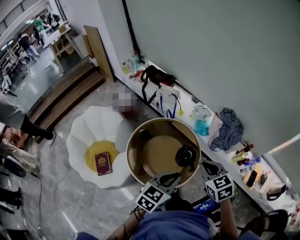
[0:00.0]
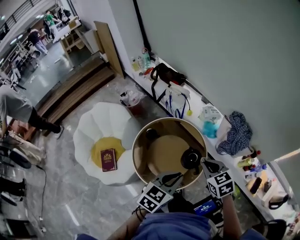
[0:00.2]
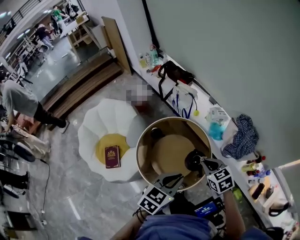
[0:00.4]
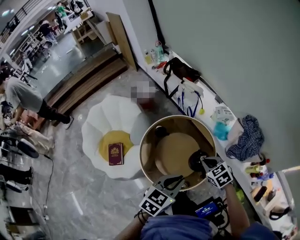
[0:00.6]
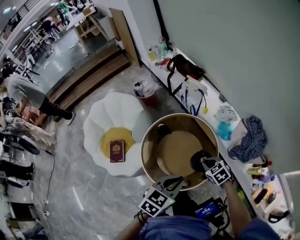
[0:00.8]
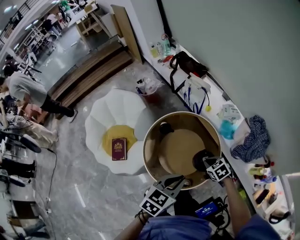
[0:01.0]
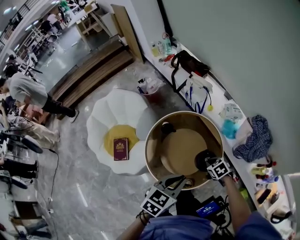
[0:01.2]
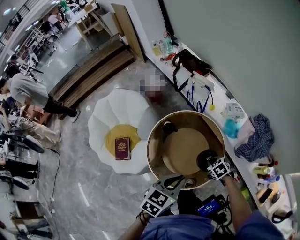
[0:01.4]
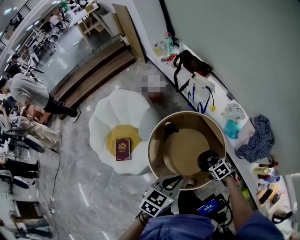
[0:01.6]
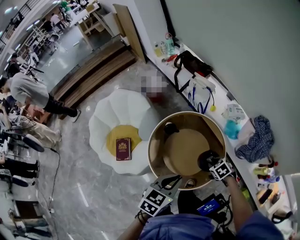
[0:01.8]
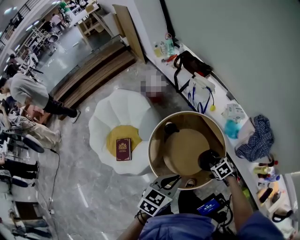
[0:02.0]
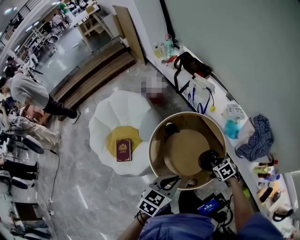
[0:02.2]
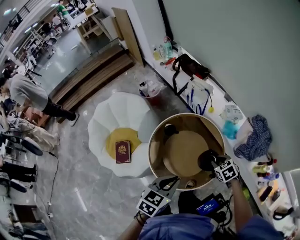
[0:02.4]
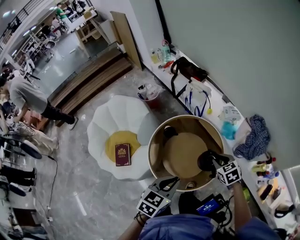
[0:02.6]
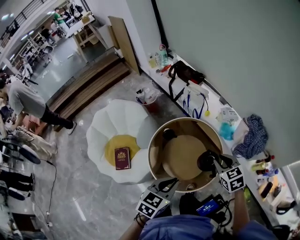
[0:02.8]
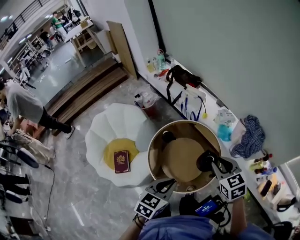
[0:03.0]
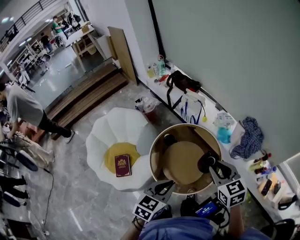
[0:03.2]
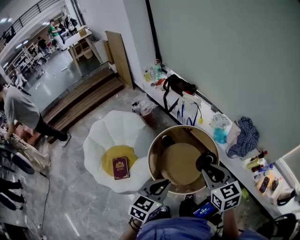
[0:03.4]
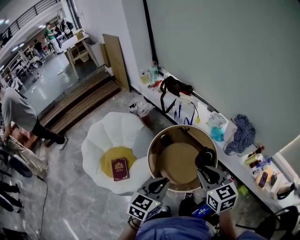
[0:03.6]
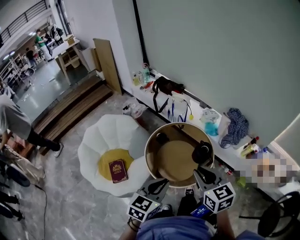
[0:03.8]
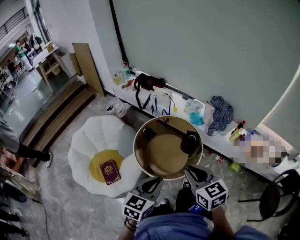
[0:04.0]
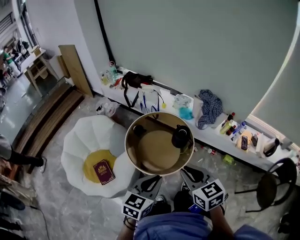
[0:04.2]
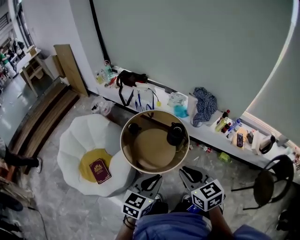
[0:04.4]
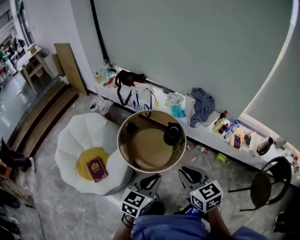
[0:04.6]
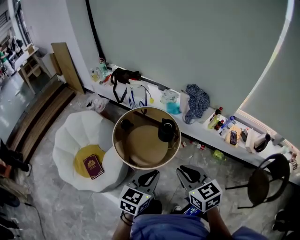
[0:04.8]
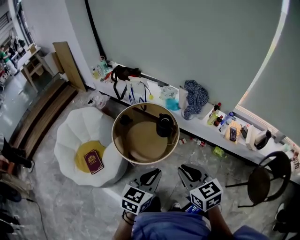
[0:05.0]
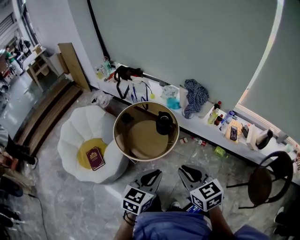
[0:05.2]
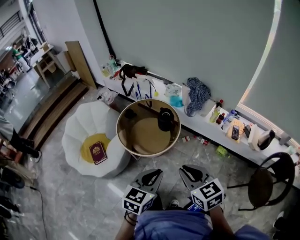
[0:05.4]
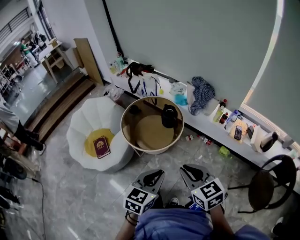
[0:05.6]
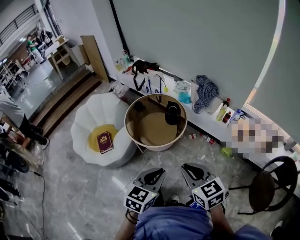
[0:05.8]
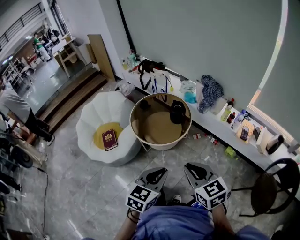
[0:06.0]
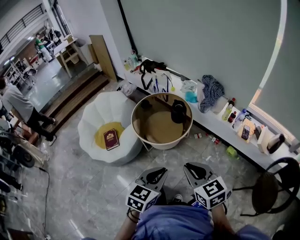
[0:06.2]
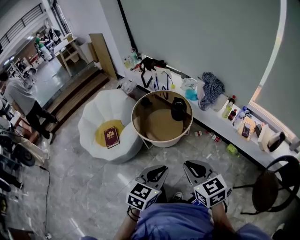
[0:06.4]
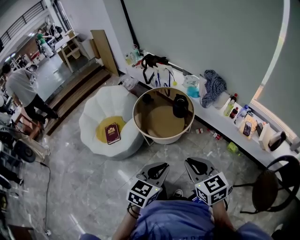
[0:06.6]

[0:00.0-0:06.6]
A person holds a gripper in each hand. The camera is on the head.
0:00.0 to 0:01.6: The right gripper heads downward, covering some 25 cm, and swivels about 40 degrees. The left gripper changes place by about 10 cm.
0:01.6 to 0:03.2: The left gripper heads to the left, backward and upward, covering approximately 10 cm. The right gripper heads upward, covering about 30 cm, and tilts its fingers approximately 30 degrees upward.
0:03.2 to 0:05.0: The right gripper heads backward, covering about 30 cm. Meanwhile the left gripper shifts approximately 20 cm backward and to the right.
0:05.0 to 0:06.6: The two grippers go approximately 15 cm backward.

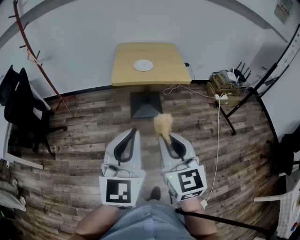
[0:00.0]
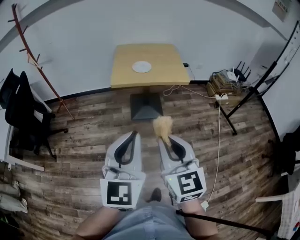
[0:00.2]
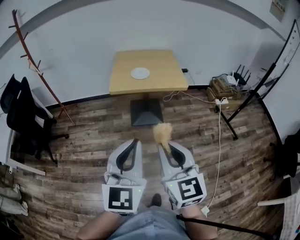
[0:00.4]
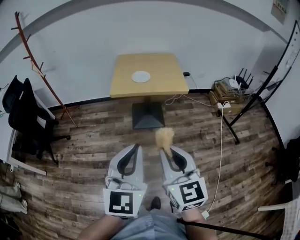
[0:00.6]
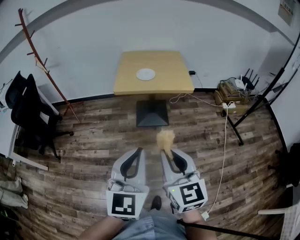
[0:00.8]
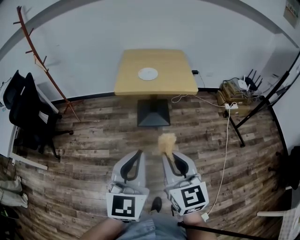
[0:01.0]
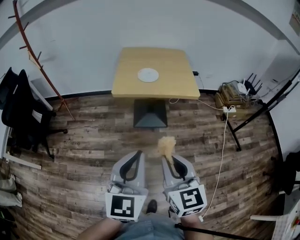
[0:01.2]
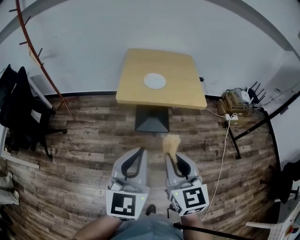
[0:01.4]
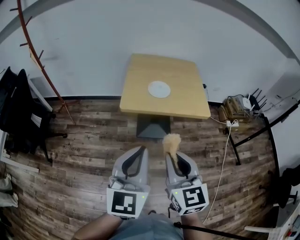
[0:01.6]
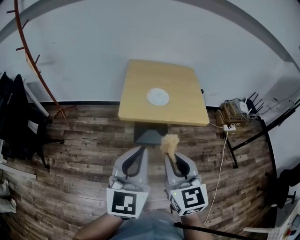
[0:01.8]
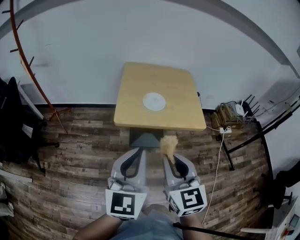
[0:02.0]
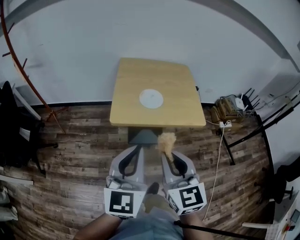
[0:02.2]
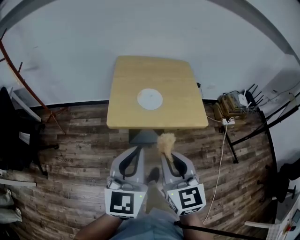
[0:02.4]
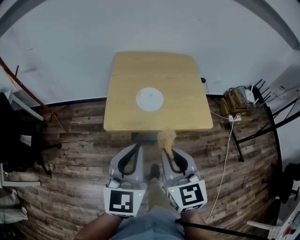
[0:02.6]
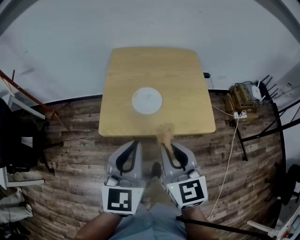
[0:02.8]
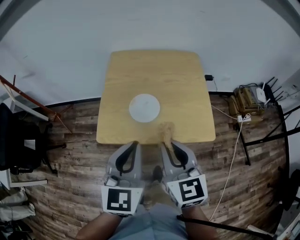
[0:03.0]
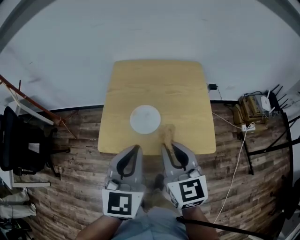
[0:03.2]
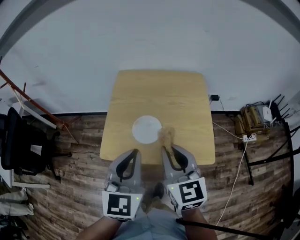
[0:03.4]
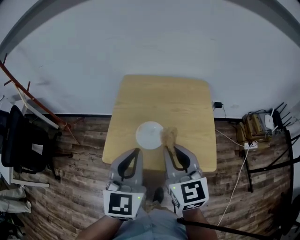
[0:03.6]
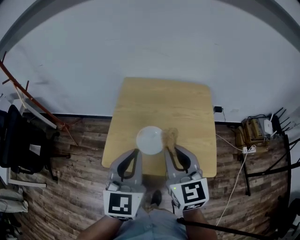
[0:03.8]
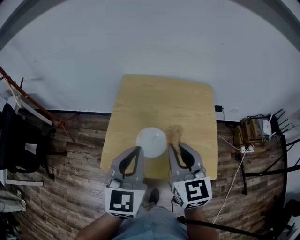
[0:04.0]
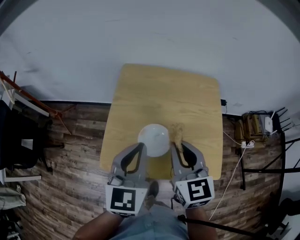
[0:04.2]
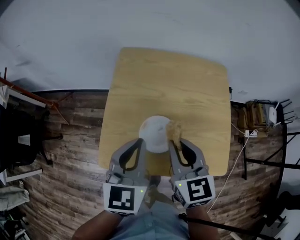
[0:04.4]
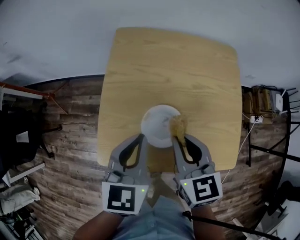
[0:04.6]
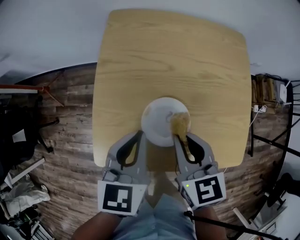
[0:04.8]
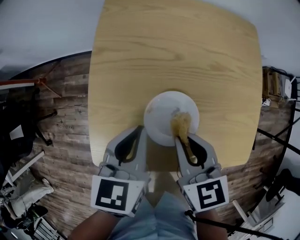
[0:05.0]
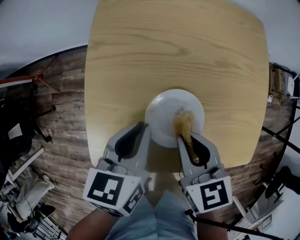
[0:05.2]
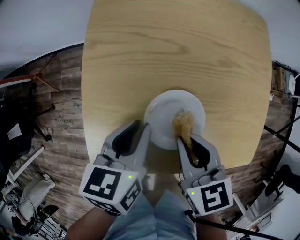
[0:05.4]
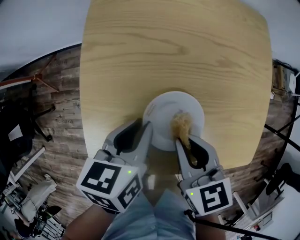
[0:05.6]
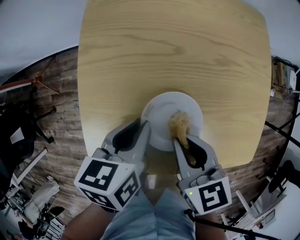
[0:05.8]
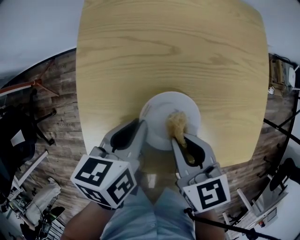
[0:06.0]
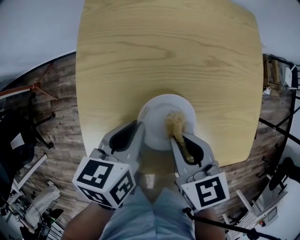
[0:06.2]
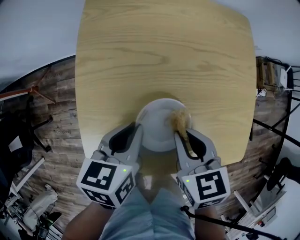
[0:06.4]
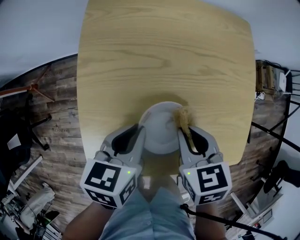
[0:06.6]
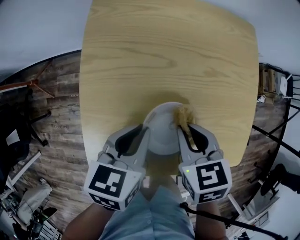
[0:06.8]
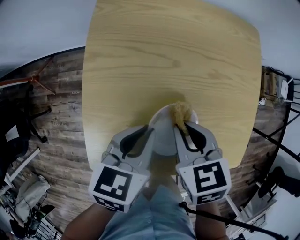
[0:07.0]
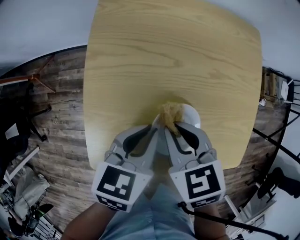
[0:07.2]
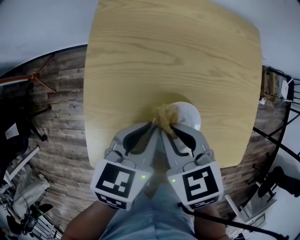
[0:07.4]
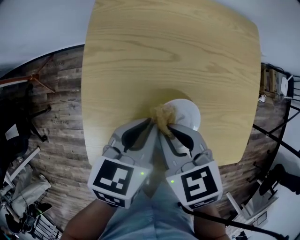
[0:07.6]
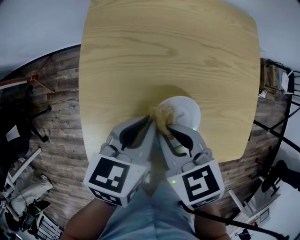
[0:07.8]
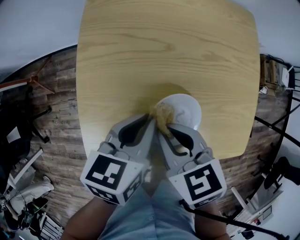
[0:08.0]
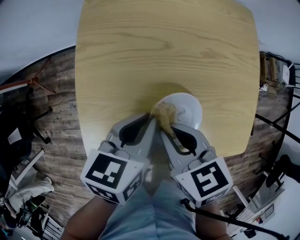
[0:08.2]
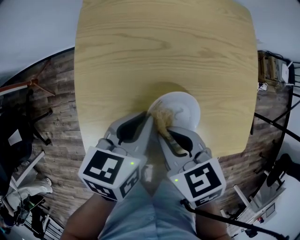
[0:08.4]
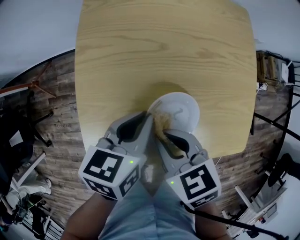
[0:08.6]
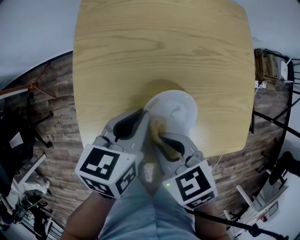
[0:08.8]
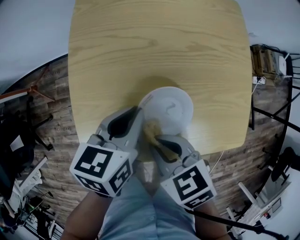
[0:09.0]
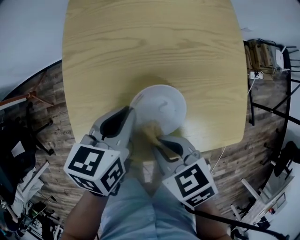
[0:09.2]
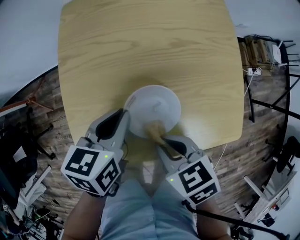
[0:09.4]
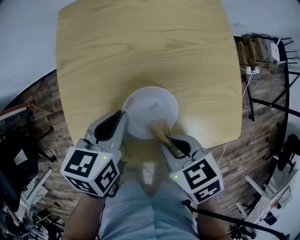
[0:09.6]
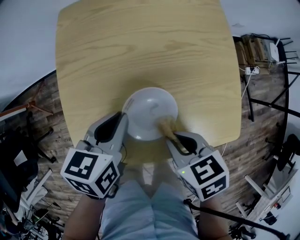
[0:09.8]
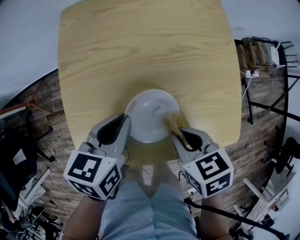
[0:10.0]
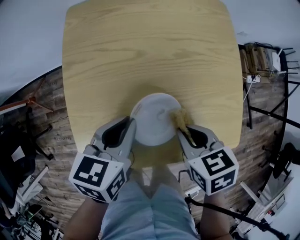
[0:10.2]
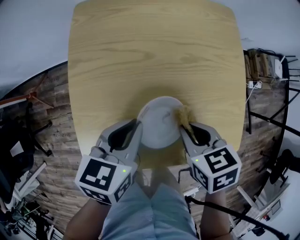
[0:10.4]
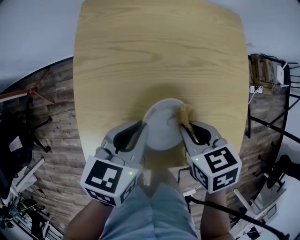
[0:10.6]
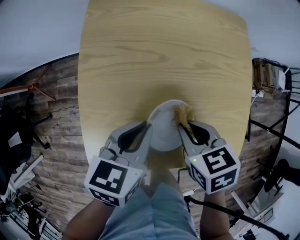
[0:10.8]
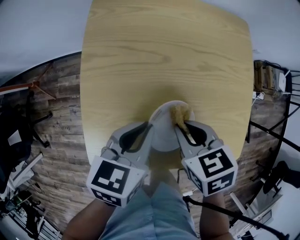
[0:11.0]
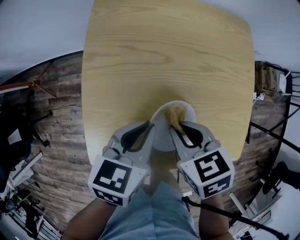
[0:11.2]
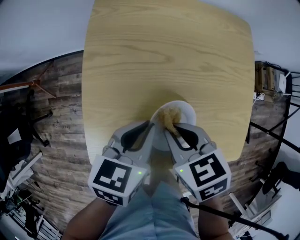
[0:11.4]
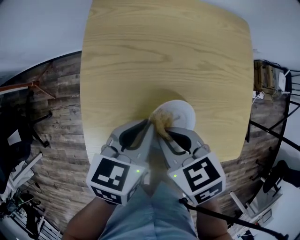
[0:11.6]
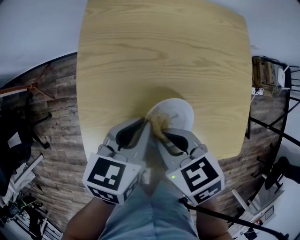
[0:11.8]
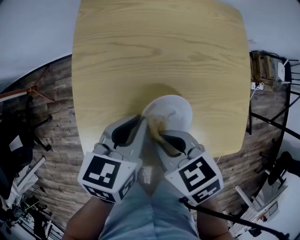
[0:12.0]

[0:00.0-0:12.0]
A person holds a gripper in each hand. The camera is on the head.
0:00.0 to 0:01.6: Both grippers move forward, approximately 20 cm.
0:01.6 to 0:03.0: Both grippers move forward, approximately 30 cm.
0:03.0 to 0:04.4: The two grippers go some 20 cm forward.
0:04.4 to 0:06.0: Both grippers move downward, about 15 cm. The left gripper rotates some 40 degrees. The right gripper swivels some 20 degrees.
0:06.0 to 0:07.6: The right gripper changes place by approximately 5 cm.
0:07.6 to 0:09.0: The right gripper heads backward, covering roughly 10 cm.
0:09.0 to 0:10.4: The right gripper is displaced to the right and forward by about 15 cm.
0:10.4 to 0:12.0: The right gripper travels to the left by about 10 cm.

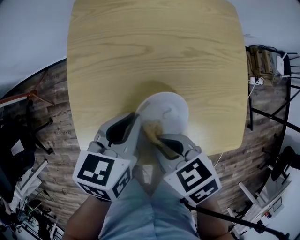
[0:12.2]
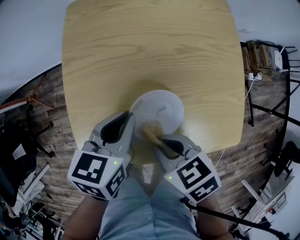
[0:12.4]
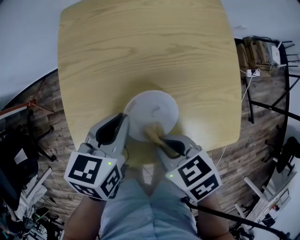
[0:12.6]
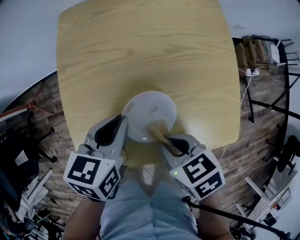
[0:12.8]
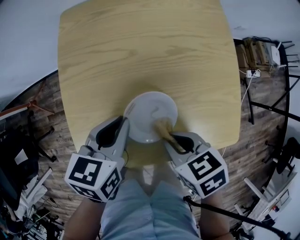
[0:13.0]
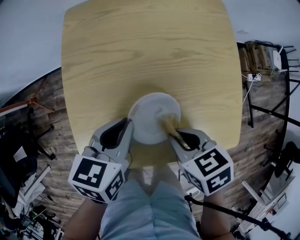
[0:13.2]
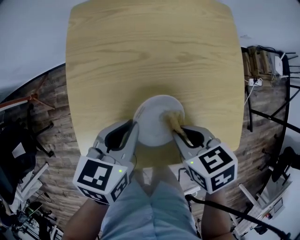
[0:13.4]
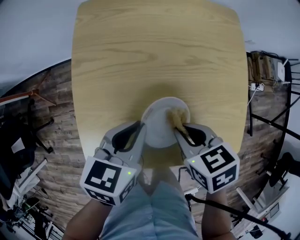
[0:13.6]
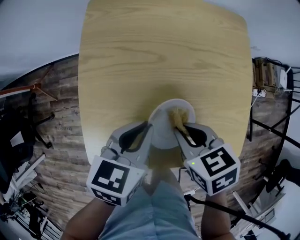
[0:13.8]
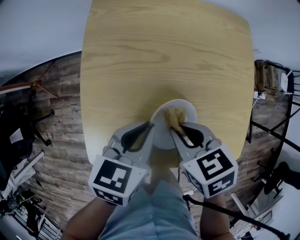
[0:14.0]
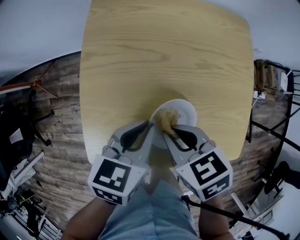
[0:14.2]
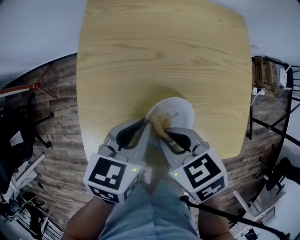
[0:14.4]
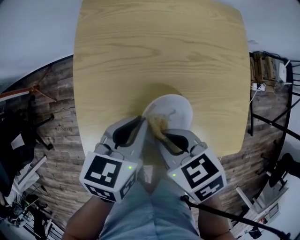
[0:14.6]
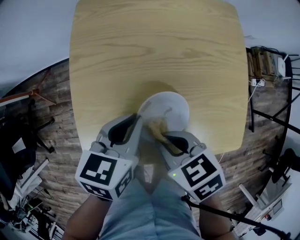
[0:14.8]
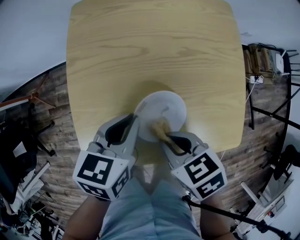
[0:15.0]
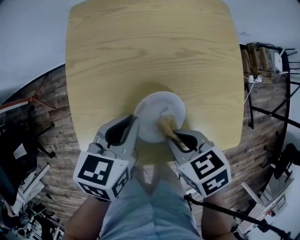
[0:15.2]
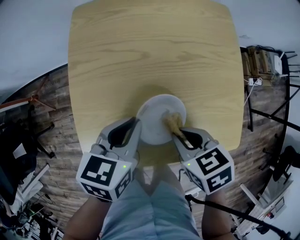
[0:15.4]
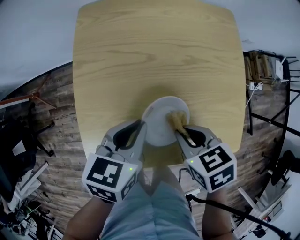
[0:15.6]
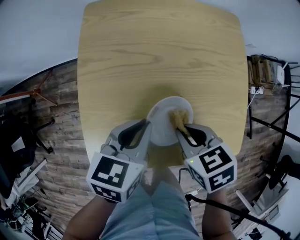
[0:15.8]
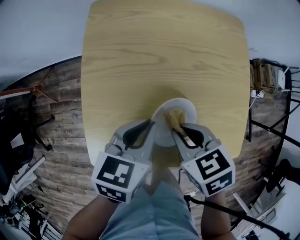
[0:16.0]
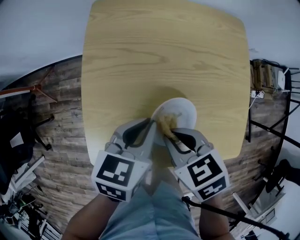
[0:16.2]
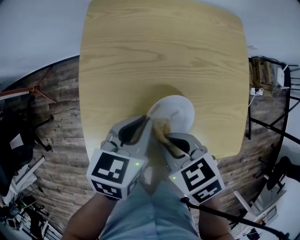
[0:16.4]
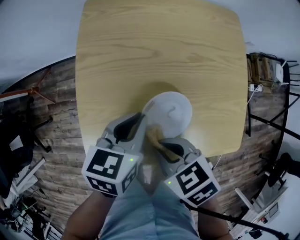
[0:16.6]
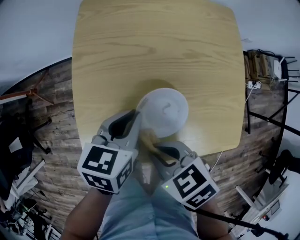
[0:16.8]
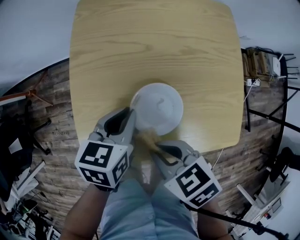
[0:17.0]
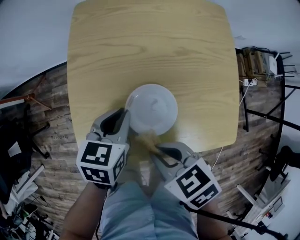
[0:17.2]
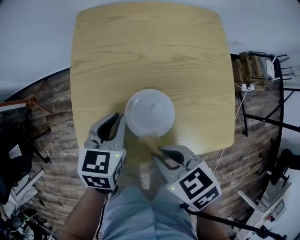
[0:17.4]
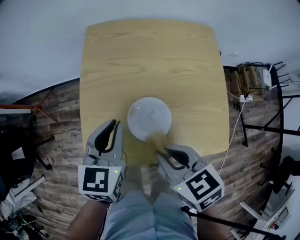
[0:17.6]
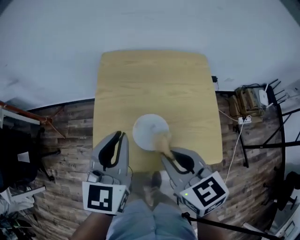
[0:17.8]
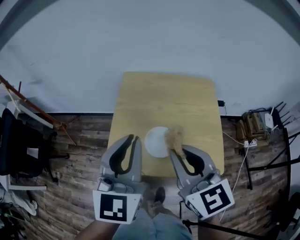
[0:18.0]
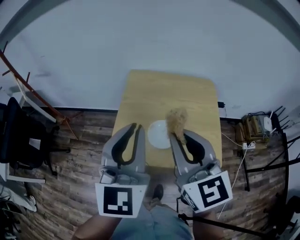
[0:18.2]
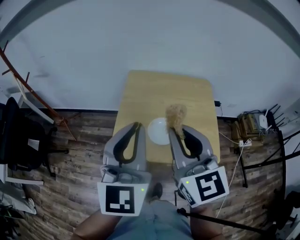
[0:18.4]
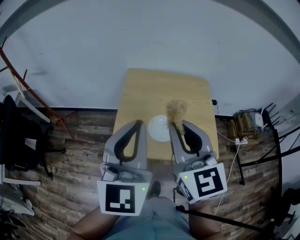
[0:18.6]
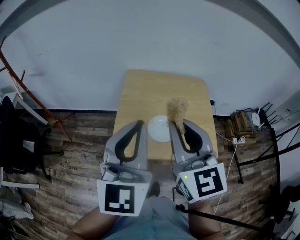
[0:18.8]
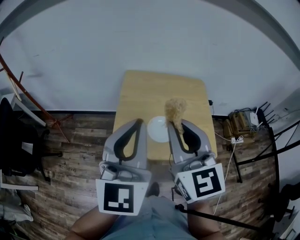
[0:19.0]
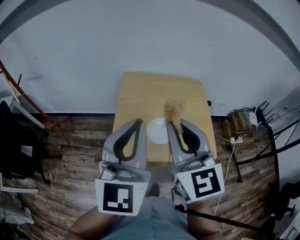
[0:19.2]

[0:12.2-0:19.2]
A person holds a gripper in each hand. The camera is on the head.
0:12.2 to 0:13.6: The right gripper heads to the right, covering about 10 cm.
0:13.6 to 0:15.0: The right gripper shifts by about 5 cm.
0:15.0 to 0:16.4: The grippers stay close to where they were, moving slightly.
0:16.4 to 0:17.8: Both grippers travel together upward, about 15 cm. The left gripper changes its angle by about 40 degrees. Meanwhile the right gripper swivels some 30 degrees.
0:17.8 to 0:19.2: The left gripper goes some 20 cm upward and backward, and turns by approximately 20 degrees. Meanwhile the right gripper moves upward and to the left, approximately 20 cm, and changes its angle by about 40 degrees.
